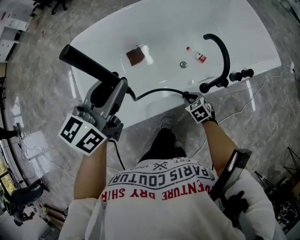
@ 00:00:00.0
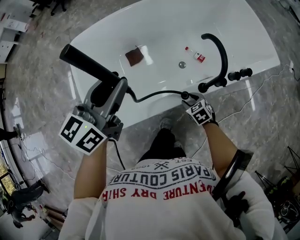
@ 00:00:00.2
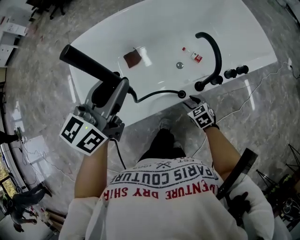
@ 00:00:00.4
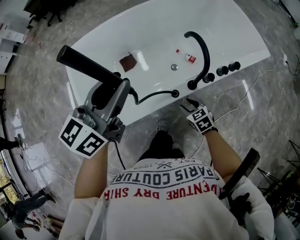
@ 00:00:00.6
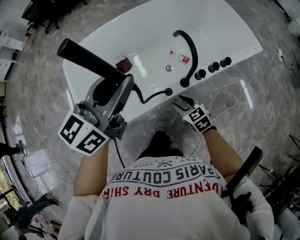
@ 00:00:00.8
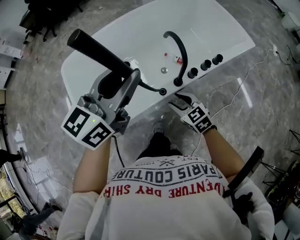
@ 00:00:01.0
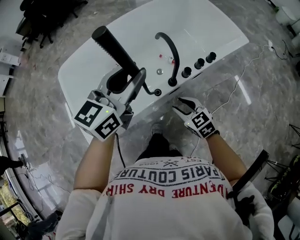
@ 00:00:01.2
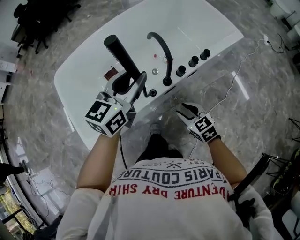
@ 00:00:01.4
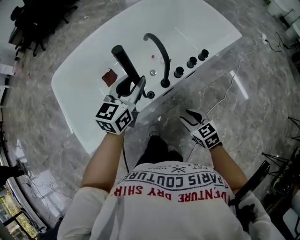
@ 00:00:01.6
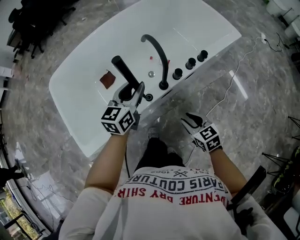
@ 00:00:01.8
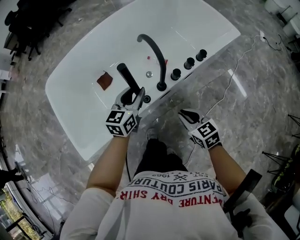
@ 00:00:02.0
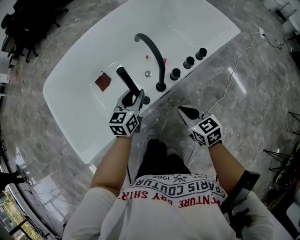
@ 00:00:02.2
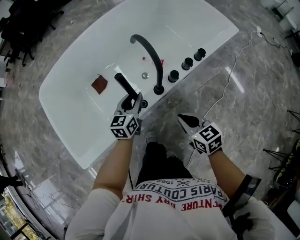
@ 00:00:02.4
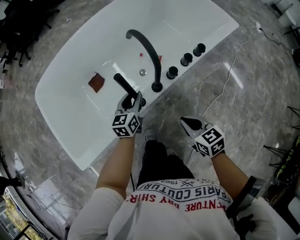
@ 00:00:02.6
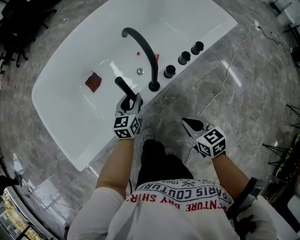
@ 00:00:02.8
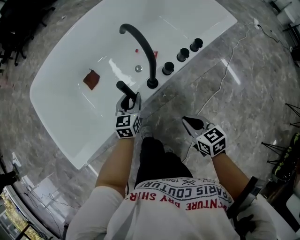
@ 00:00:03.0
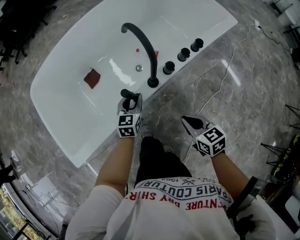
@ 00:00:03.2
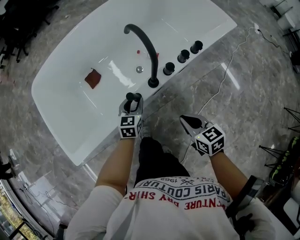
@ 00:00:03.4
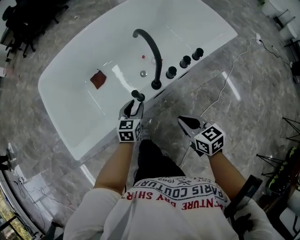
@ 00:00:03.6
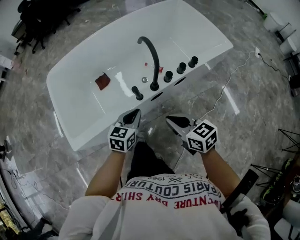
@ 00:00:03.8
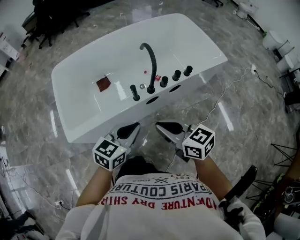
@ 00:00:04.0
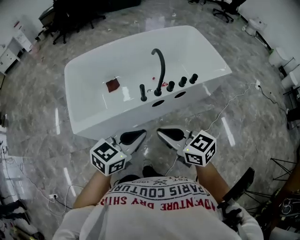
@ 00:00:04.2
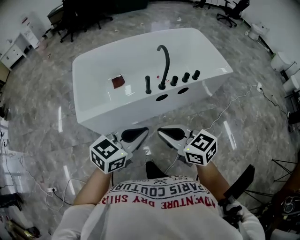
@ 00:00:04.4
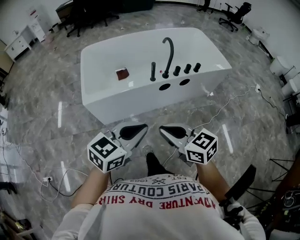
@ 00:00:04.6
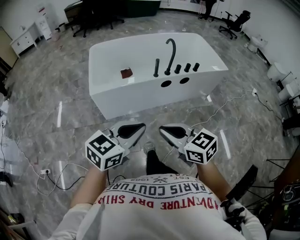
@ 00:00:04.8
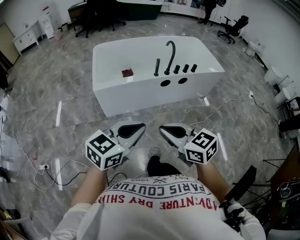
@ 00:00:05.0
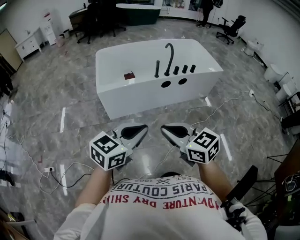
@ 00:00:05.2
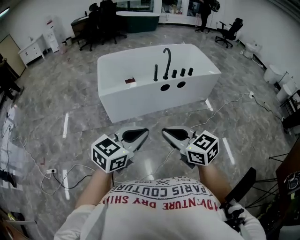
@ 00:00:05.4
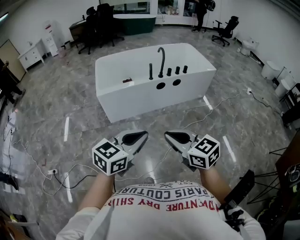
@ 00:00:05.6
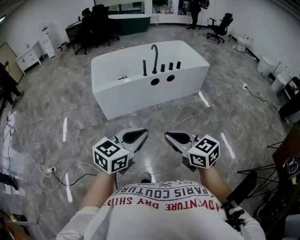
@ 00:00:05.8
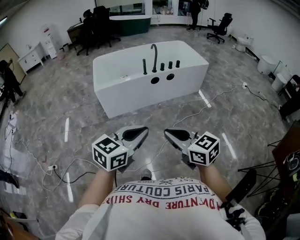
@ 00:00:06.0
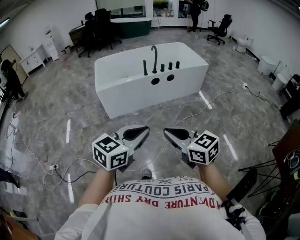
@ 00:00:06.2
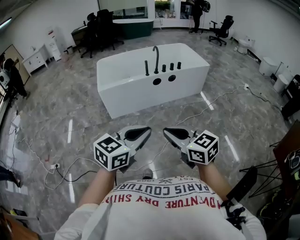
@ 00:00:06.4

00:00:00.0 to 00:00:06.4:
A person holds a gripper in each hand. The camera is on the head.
00:00:00.0 to 00:00:01.6: The left gripper moves to the right, roughly 20 cm. The right gripper moves upward, backward and to the right, some 25 cm, rotates some 30 degrees, and opens up.
00:00:01.6 to 00:00:03.2: The left gripper moves downward, about 30 cm. Meanwhile the right gripper closes.
00:00:03.2 to 00:00:04.8: Both grippers are carried backward, approximately 50 cm. Both grippers travel together upward, about 35 cm. The right gripper swivels approximately 40 degrees, while the left gripper closes its fingers.
00:00:04.8 to 00:00:06.4: The two grippers go roughly 30 cm backward.

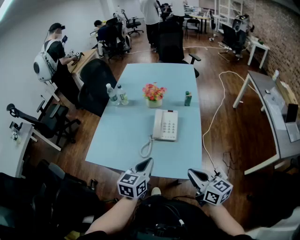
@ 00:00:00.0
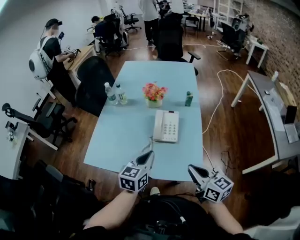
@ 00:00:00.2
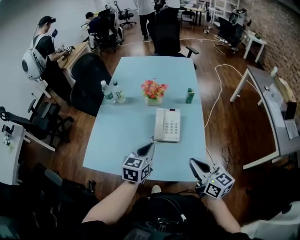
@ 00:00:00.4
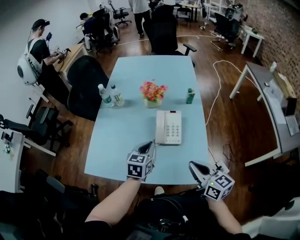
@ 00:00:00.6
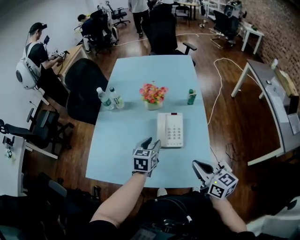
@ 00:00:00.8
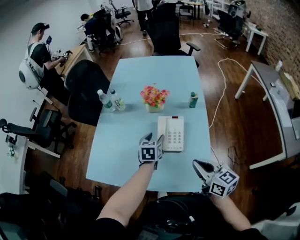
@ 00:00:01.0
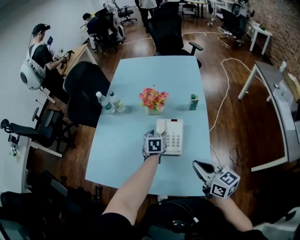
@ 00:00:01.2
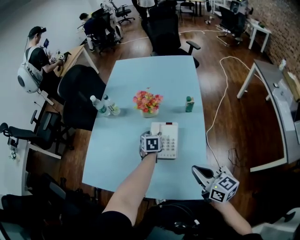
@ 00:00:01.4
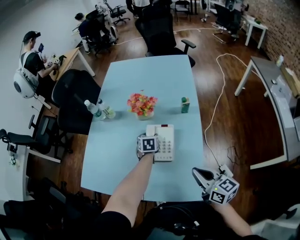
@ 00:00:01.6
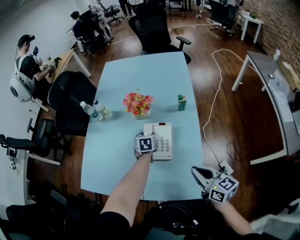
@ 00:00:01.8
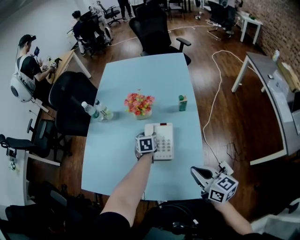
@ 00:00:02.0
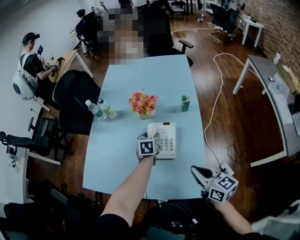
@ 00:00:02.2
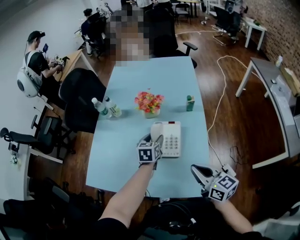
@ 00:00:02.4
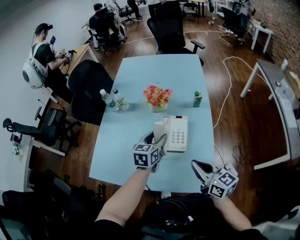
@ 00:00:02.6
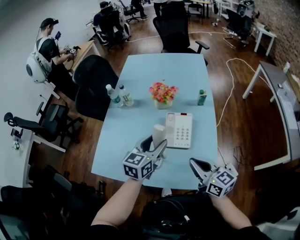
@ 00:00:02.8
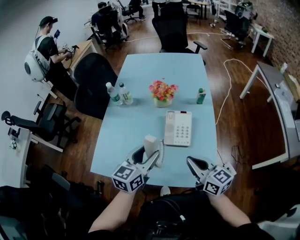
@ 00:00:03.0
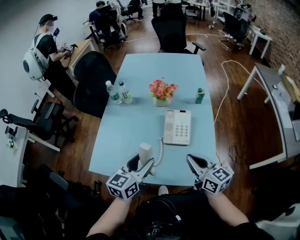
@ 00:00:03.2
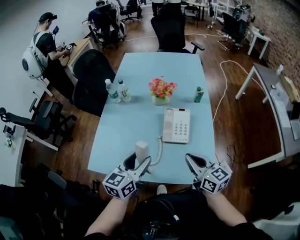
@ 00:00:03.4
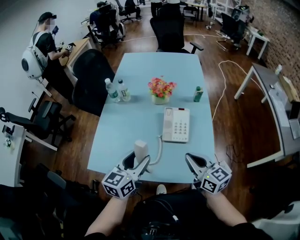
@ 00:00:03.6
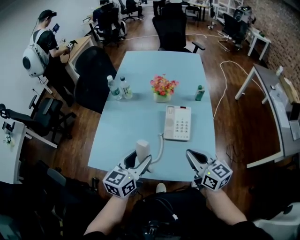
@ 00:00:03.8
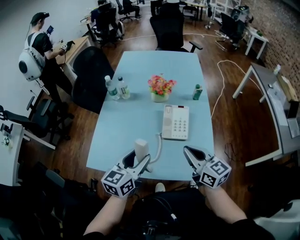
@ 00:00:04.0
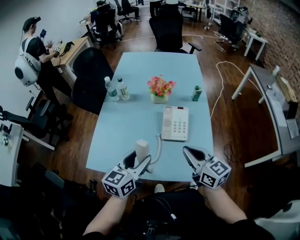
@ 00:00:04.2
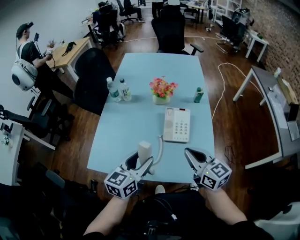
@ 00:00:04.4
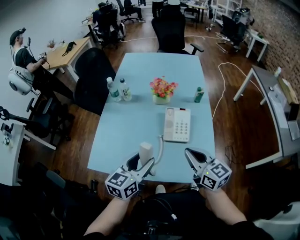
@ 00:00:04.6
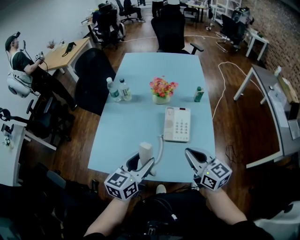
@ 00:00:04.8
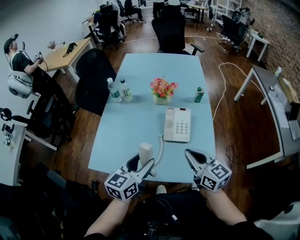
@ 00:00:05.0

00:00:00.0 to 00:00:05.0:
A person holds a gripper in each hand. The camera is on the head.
00:00:00.0 to 00:00:01.6: The left gripper moves forward and downward, about 40 cm, swivels approximately 30 degrees, and opens up; the right gripper travels forward by some 15 cm.
00:00:01.6 to 00:00:03.4: The right gripper is displaced to the left by about 15 cm; the left gripper moves backward, upward and to the left, approximately 35 cm, and tips its fingers upward by some 30 degrees.
00:00:03.4 to 00:00:05.0: The grippers move only a little.

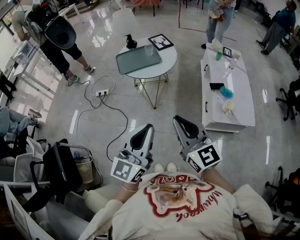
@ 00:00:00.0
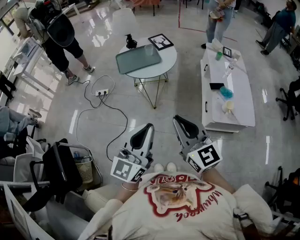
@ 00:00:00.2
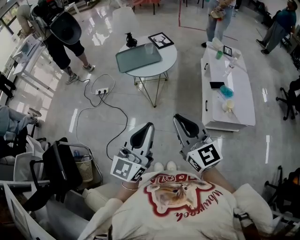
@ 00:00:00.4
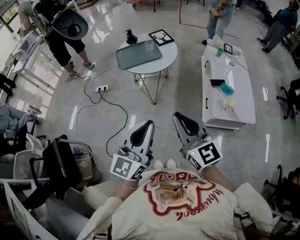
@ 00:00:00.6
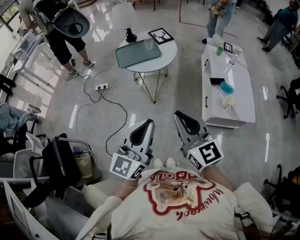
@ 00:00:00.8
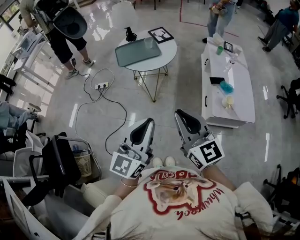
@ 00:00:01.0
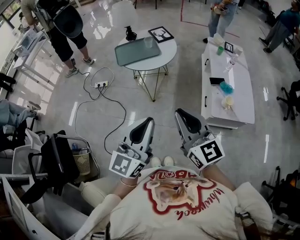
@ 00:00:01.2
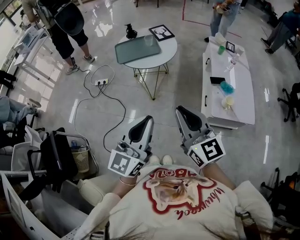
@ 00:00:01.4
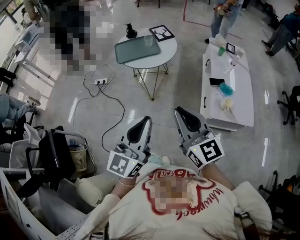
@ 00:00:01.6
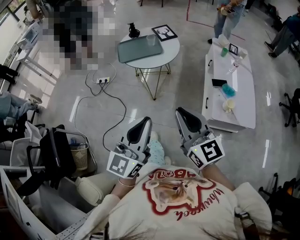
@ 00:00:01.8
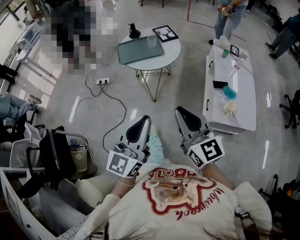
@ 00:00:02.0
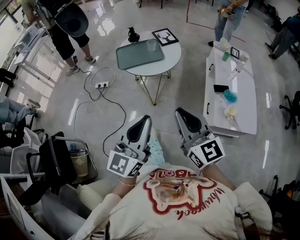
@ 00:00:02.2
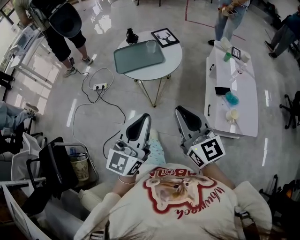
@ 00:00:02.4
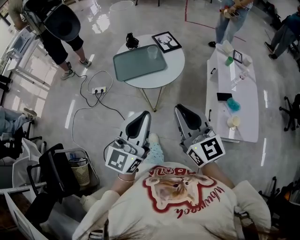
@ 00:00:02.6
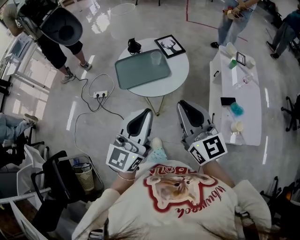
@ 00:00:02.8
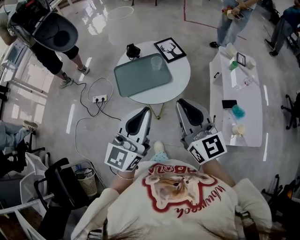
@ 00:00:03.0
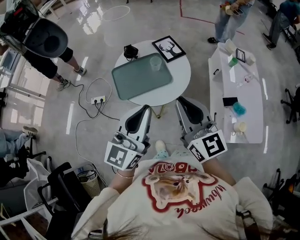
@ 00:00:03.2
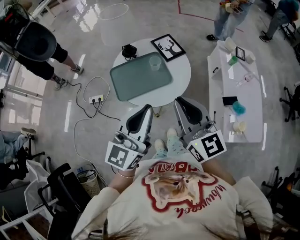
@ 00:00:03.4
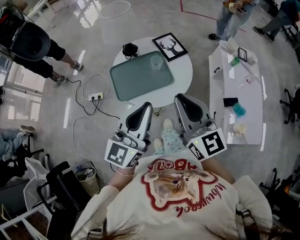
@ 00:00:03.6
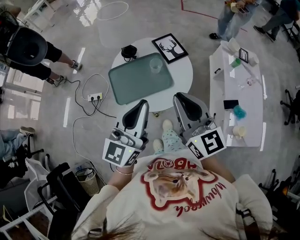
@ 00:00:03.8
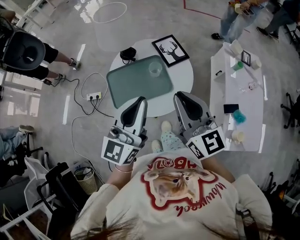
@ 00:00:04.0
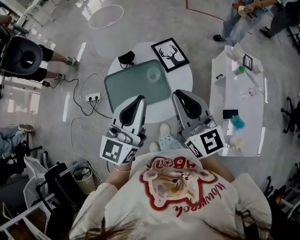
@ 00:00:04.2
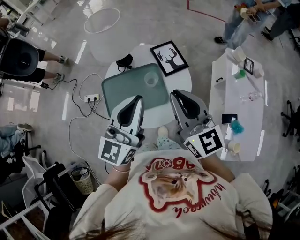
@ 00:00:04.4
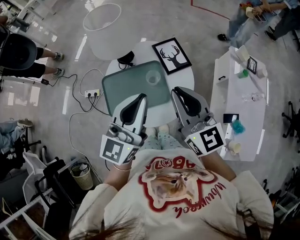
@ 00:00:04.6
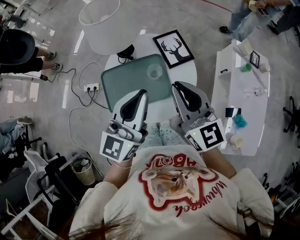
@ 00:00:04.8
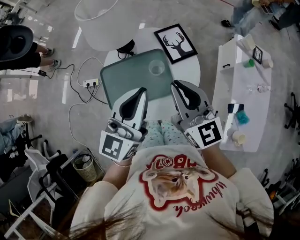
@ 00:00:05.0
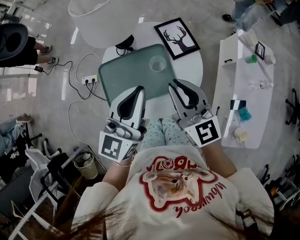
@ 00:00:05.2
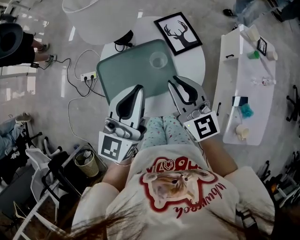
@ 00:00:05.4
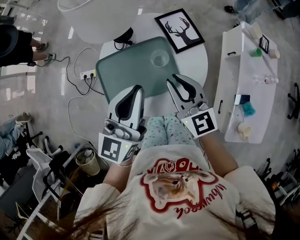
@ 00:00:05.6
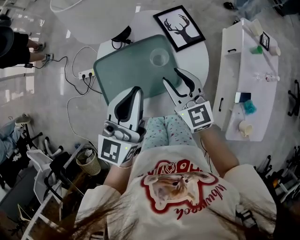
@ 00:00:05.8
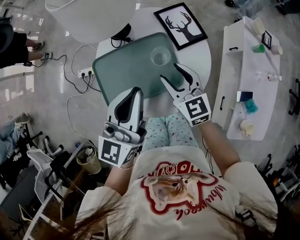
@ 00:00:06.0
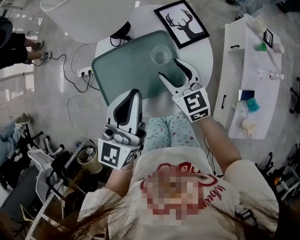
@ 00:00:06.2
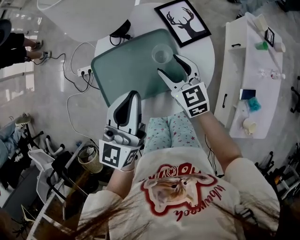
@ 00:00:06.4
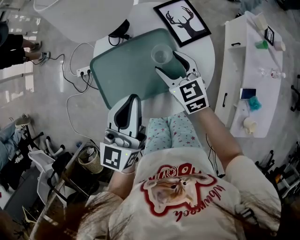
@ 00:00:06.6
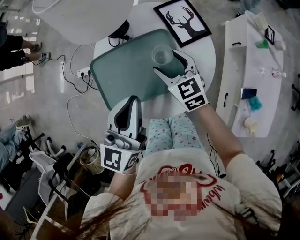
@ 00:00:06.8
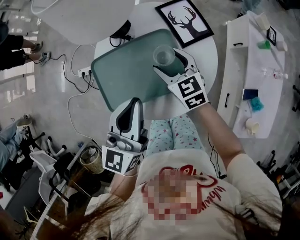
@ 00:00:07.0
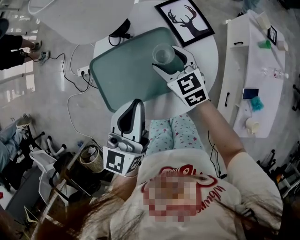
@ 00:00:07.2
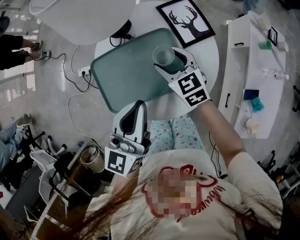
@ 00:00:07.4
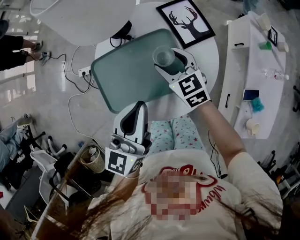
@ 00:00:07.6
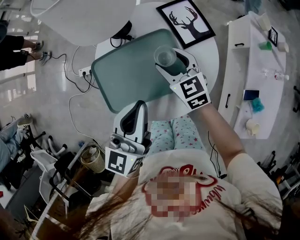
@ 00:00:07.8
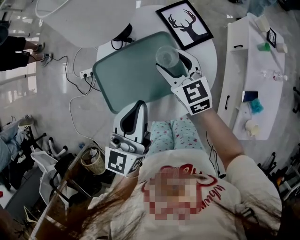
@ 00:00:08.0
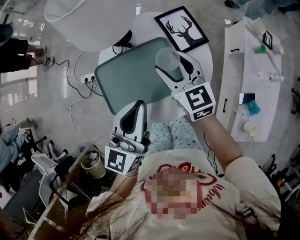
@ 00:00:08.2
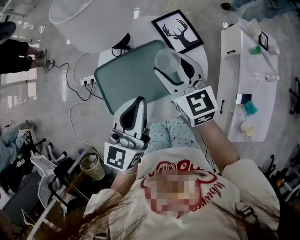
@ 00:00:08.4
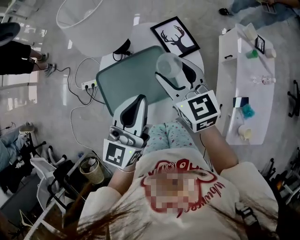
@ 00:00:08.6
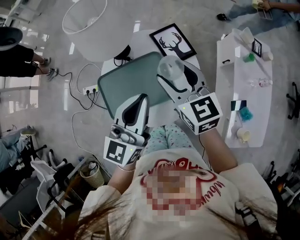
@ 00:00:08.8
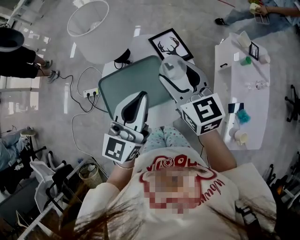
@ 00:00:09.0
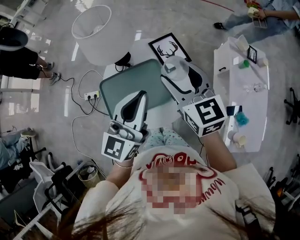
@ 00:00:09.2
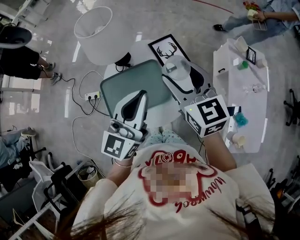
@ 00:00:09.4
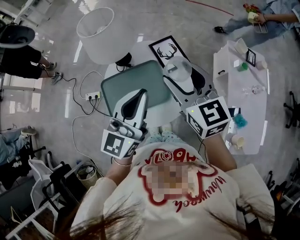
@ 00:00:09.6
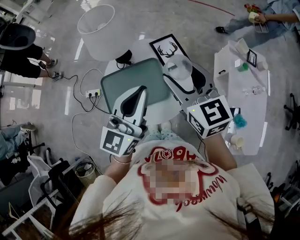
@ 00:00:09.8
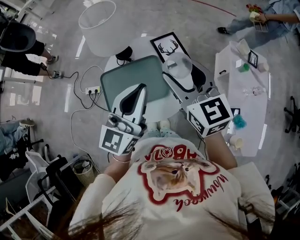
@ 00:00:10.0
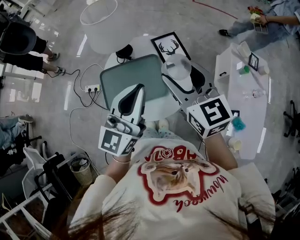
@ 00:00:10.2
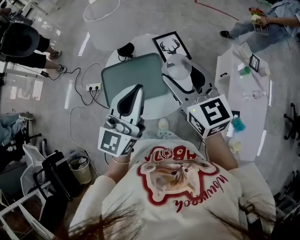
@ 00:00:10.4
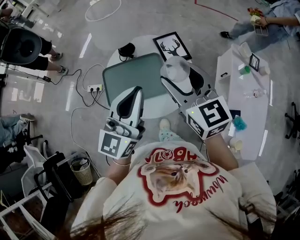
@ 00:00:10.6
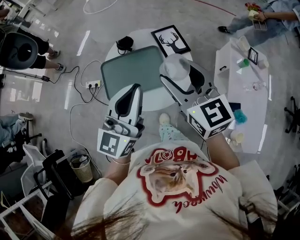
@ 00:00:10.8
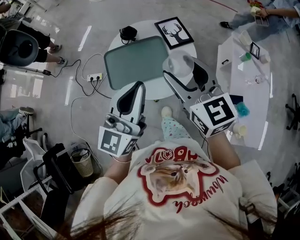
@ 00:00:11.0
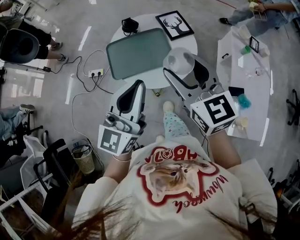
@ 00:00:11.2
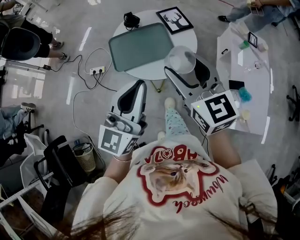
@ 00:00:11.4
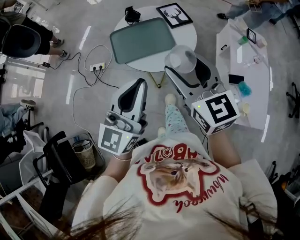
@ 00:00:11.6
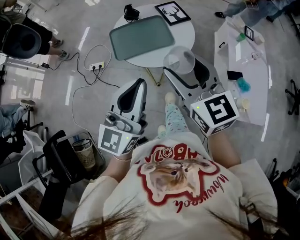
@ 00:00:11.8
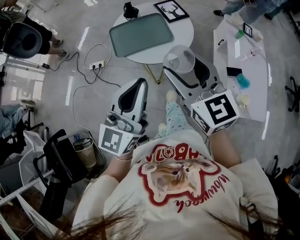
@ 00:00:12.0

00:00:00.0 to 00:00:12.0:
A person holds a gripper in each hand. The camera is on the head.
00:00:00.0 to 00:00:01.6: The grippers make only small movements.
00:00:01.6 to 00:00:03.0: The two grippers go approximately 30 cm forward.
00:00:03.0 to 00:00:04.4: Both grippers travel together forward, some 20 cm.
00:00:04.4 to 00:00:06.0: The right gripper heads downward, covering approximately 25 cm, turns by about 20 degrees, and opens, while the left gripper is displaced downward by approximately 10 cm.
00:00:06.0 to 00:00:07.6: The right gripper shifts approximately 5 cm forward; the left gripper changes place by some 5 cm.
00:00:07.6 to 00:00:09.0: The right gripper is displaced upward by some 20 cm. The left gripper travels upward and to the right by approximately 10 cm.
00:00:09.0 to 00:00:10.4: The right gripper shifts approximately 10 cm backward and upward, while the left gripper moves about 5 cm.
00:00:10.4 to 00:00:12.0: Both grippers move backward, roughly 30 cm.
